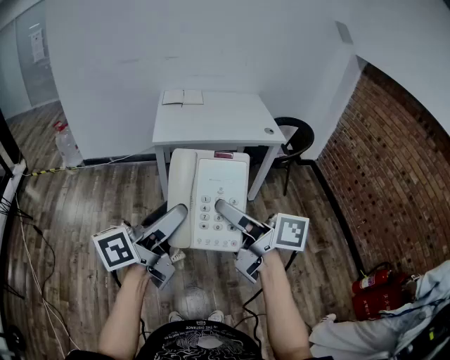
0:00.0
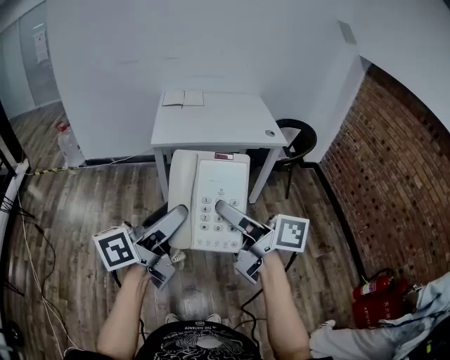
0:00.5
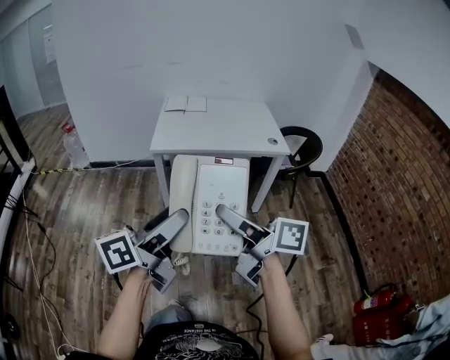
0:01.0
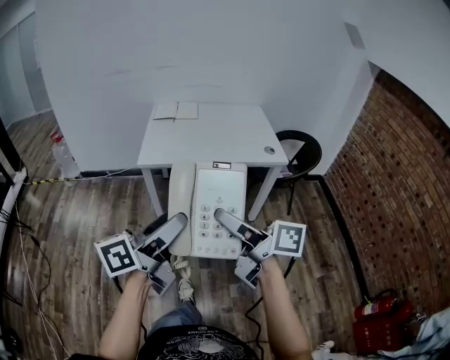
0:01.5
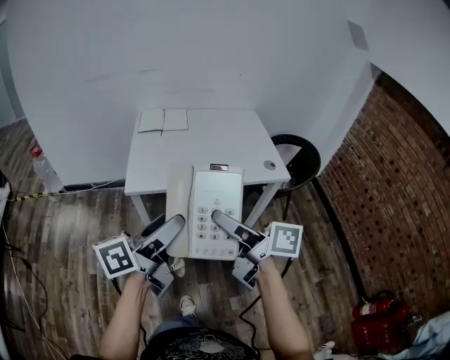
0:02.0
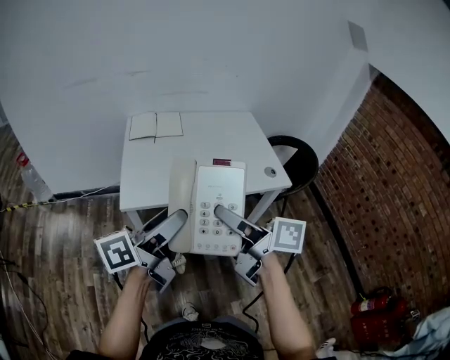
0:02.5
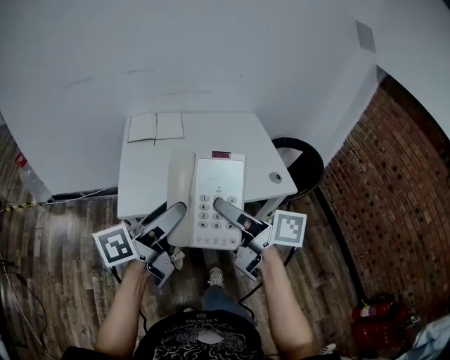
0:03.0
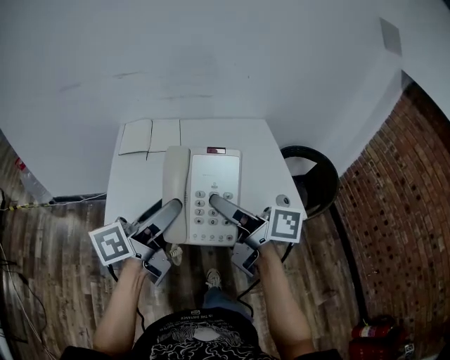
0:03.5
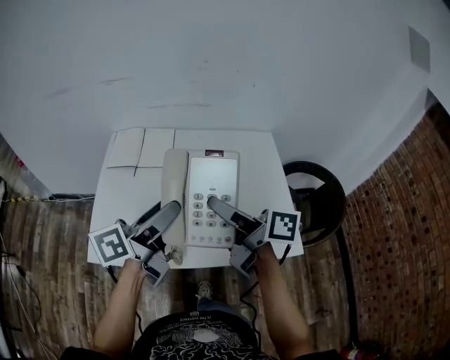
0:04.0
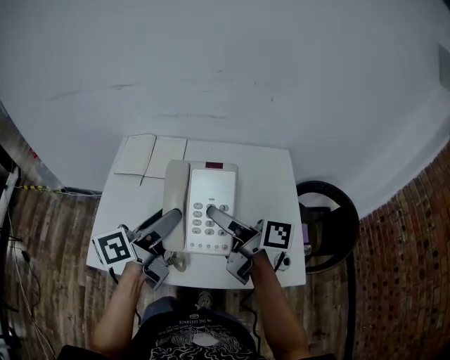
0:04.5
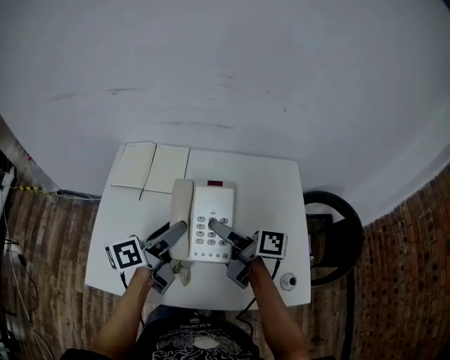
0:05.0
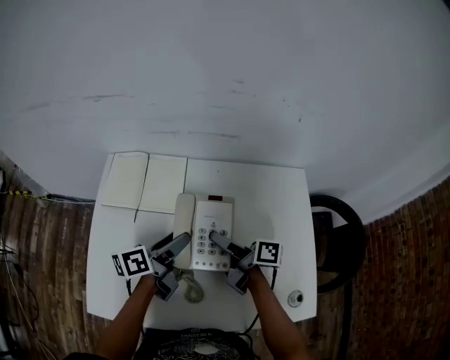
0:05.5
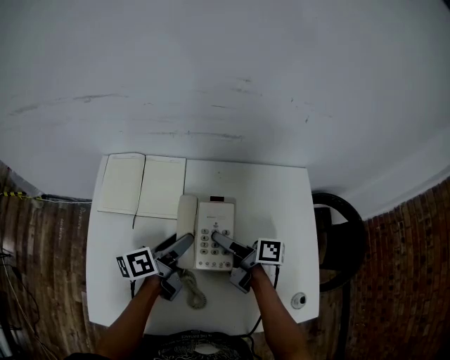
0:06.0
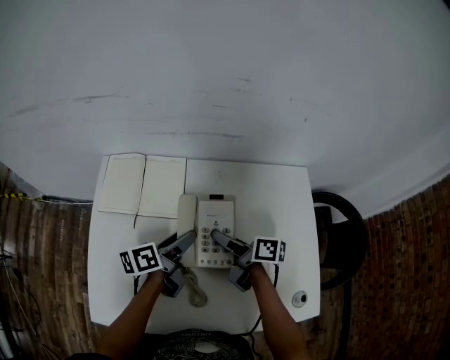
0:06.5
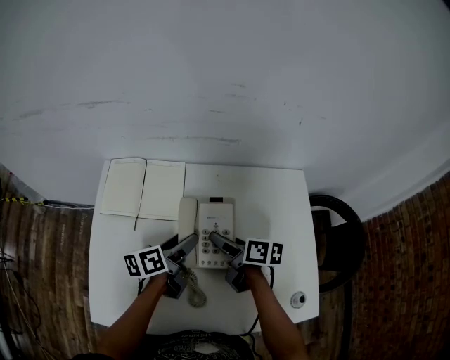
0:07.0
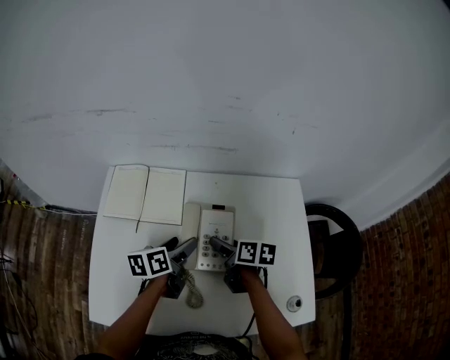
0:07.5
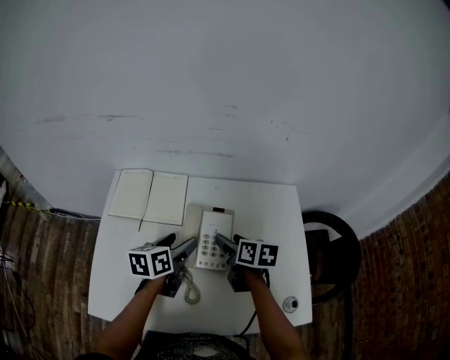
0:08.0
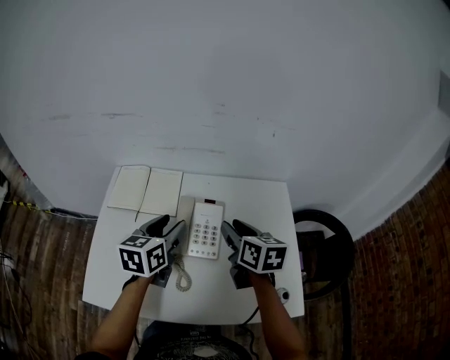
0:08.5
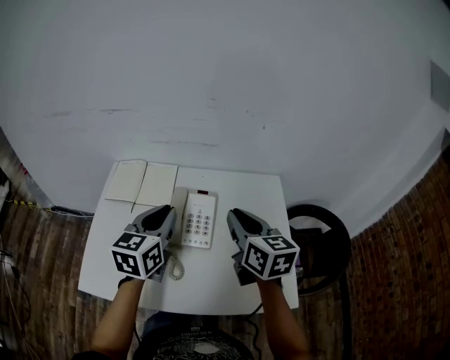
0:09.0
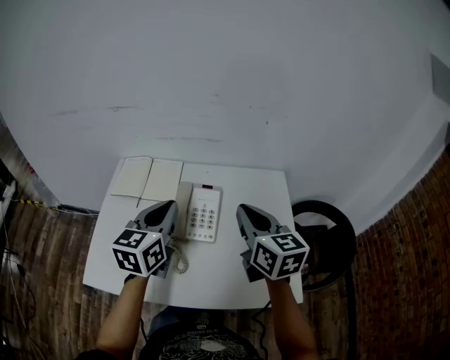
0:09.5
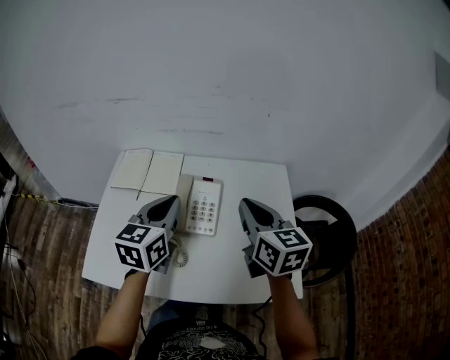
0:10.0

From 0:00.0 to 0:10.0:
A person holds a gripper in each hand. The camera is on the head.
From 0:00.0 to 0:02.0: Both grippers travel together forward, approximately 30 cm.
From 0:02.0 to 0:04.0: The two grippers travel together, forward, some 40 cm.
From 0:04.0 to 0:06.0: The two grippers go some 30 cm downward and forward. The left gripper rotates about 20 degrees.
From 0:06.0 to 0:08.0: The right gripper shifts by some 5 cm, rotates some 40 degrees, and opens, while the left gripper turns by some 30 degrees.
From 0:08.0 to 0:10.0: The grippers both shift upward and backward by roughly 20 cm. The left gripper swivels some 30 degrees, and closes, while the right gripper rotates some 40 degrees, and closes up.

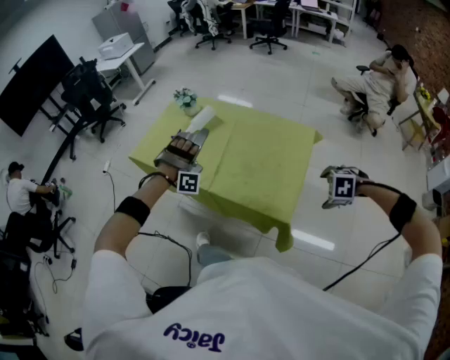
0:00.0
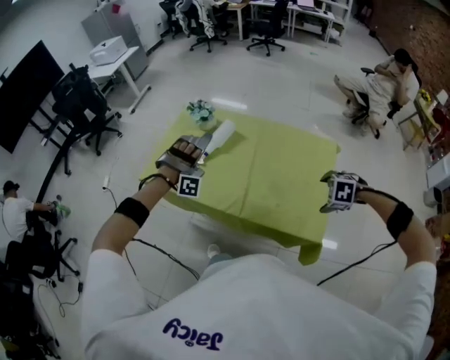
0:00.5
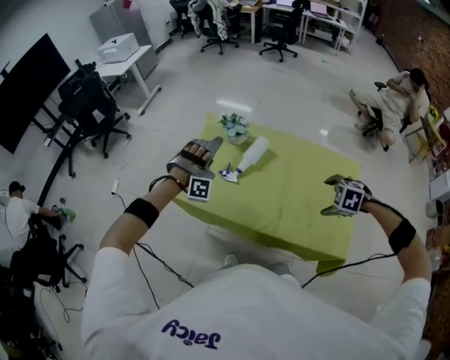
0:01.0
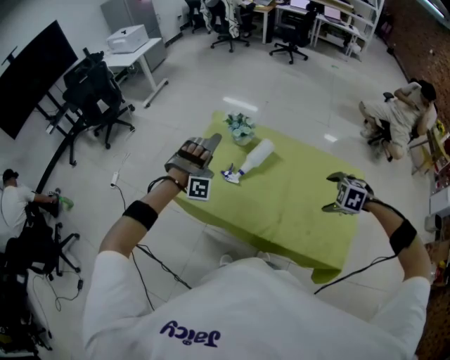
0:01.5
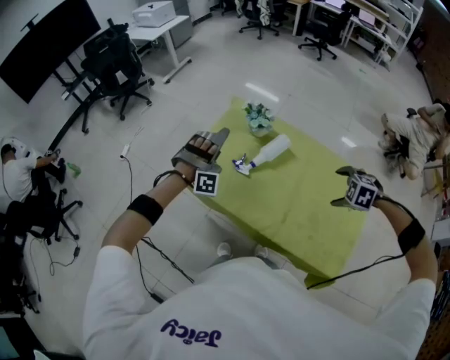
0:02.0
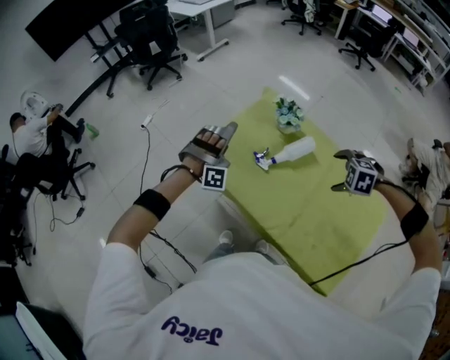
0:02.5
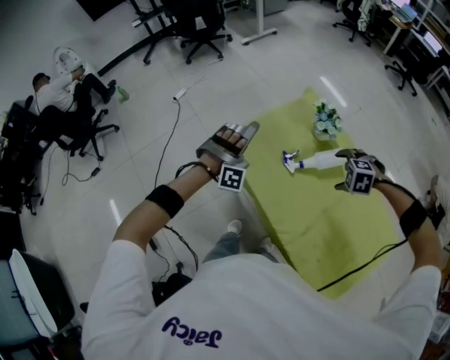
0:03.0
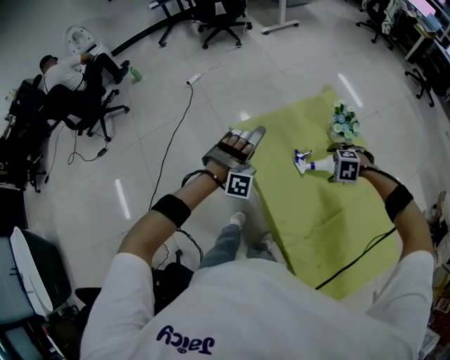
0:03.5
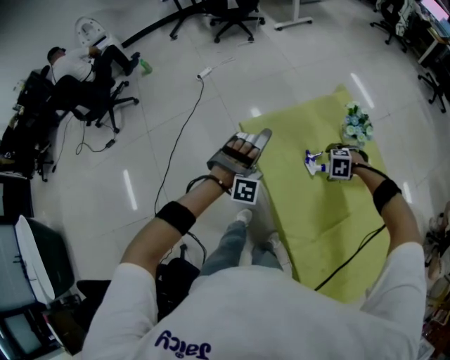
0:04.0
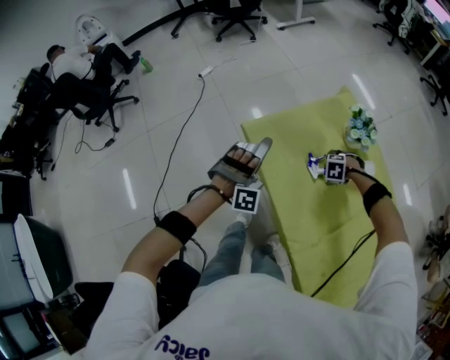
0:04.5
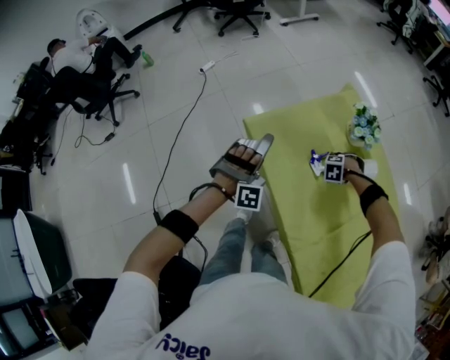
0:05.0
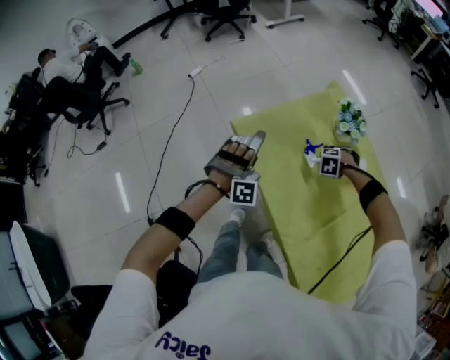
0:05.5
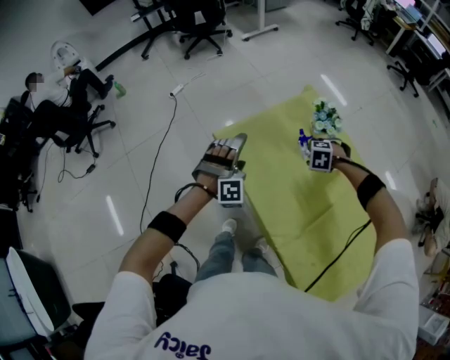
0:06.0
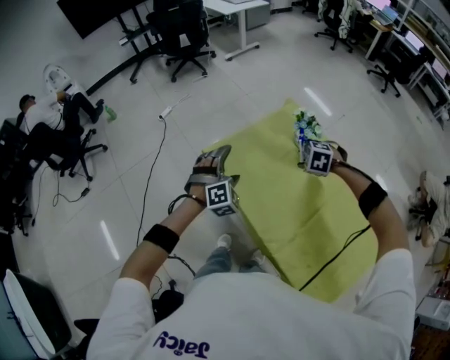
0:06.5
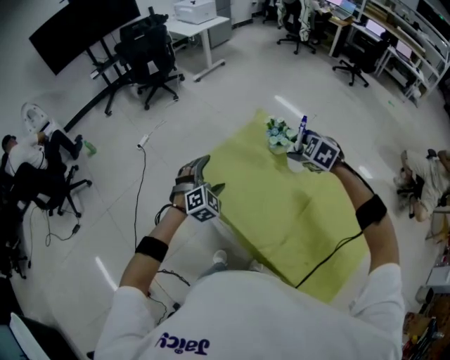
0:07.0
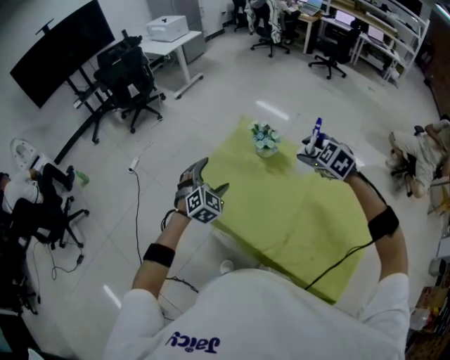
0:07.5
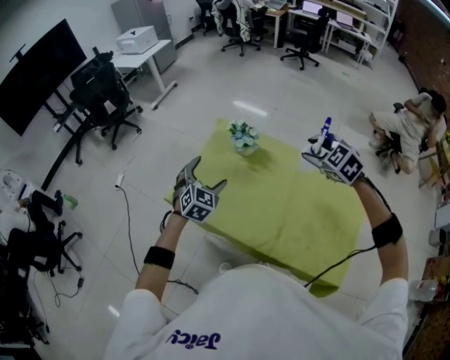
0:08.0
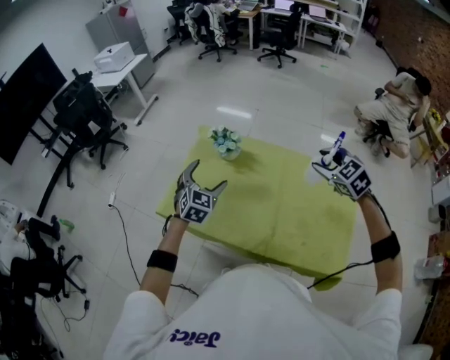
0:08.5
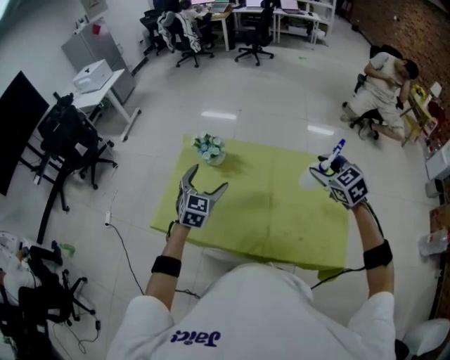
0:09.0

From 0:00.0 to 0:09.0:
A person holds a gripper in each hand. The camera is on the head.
From 0:00.0 to 0:02.0: The left gripper changes place by about 35 cm. Meanwhile the right gripper moves approximately 40 cm.
From 0:02.0 to 0:04.5: The left gripper moves approximately 15 cm, and swivels some 40 degrees. The right gripper shifts by about 40 cm, and twists about 40 degrees counterclockwise, seen from behind.
From 0:04.5 to 0:07.0: The left gripper shifts some 5 cm upward, and turns by roughly 40 degrees. Meanwhile the right gripper moves upward, roughly 30 cm, rotates roughly 50 degrees, and closes.
From 0:07.0 to 0:09.0: The right gripper moves some 30 cm, and turns by some 50 degrees. Meanwhile the left gripper shifts by approximately 20 cm, and turns by some 40 degrees.

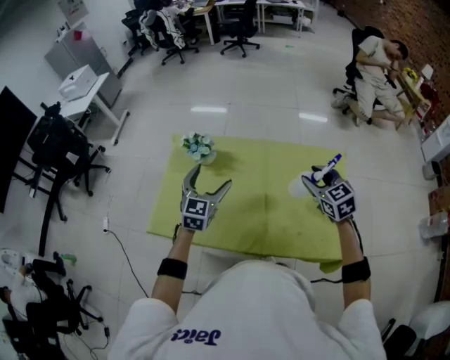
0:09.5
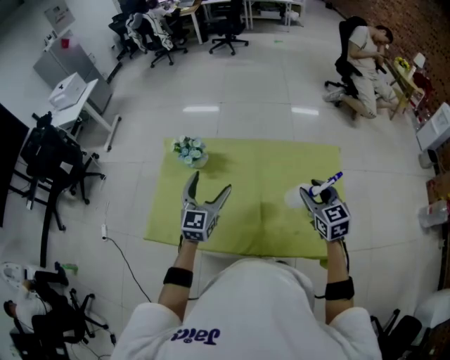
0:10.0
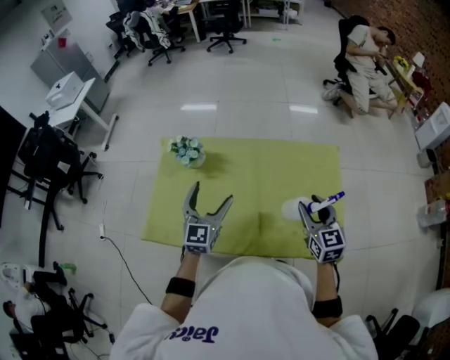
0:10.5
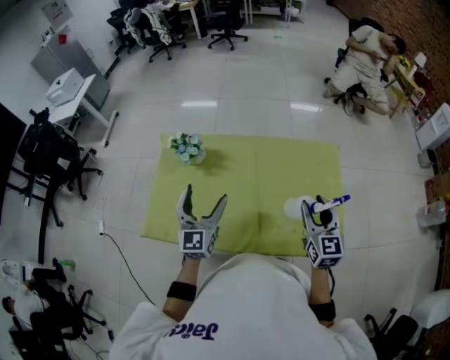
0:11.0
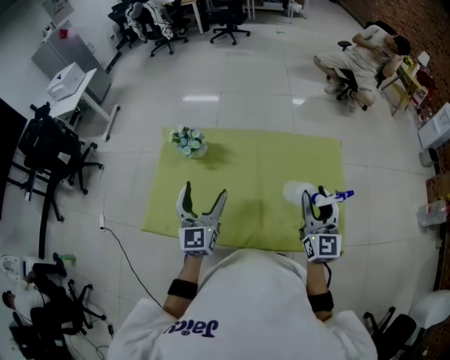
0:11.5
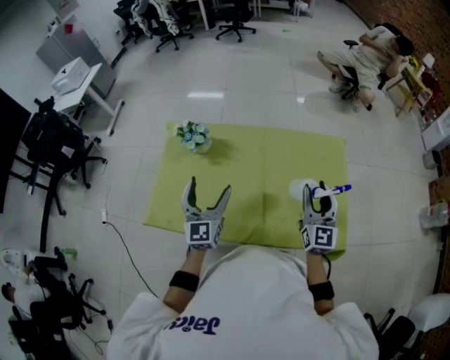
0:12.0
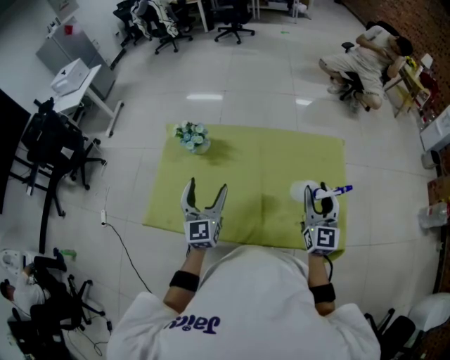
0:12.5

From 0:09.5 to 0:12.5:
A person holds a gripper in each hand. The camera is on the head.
From 0:09.5 to 0:11.0: The right gripper goes approximately 10 cm backward, and changes its angle by roughly 30 degrees, while the left gripper moves backward, approximately 5 cm.
From 0:11.0 to 0:12.5: The grippers stay close to where they were, moving slightly.

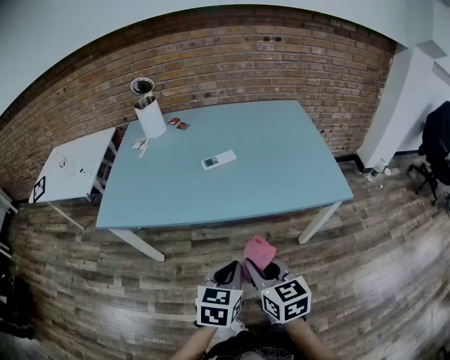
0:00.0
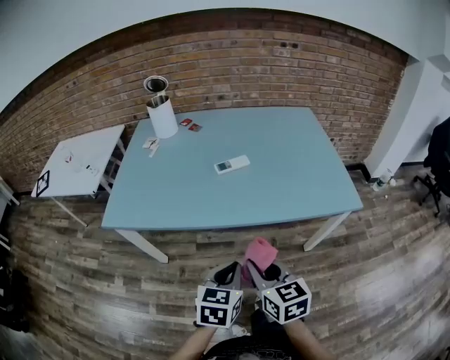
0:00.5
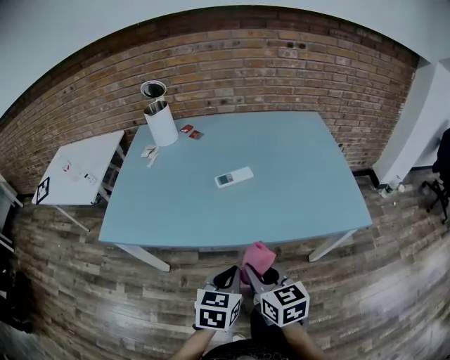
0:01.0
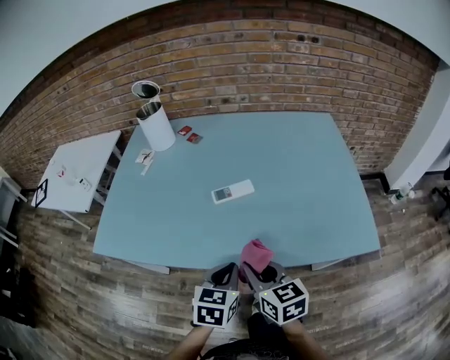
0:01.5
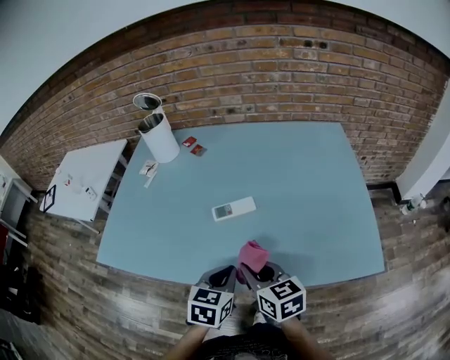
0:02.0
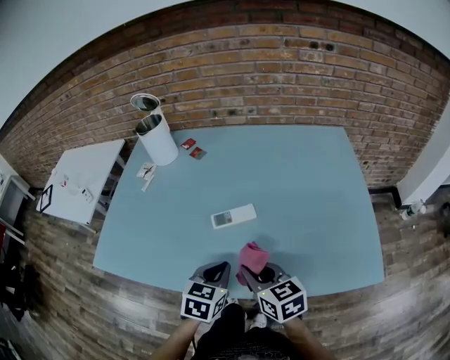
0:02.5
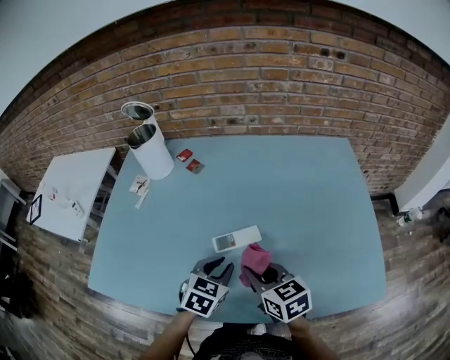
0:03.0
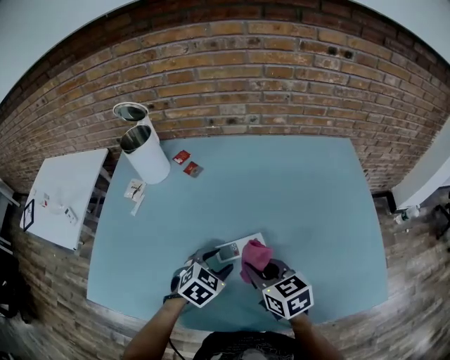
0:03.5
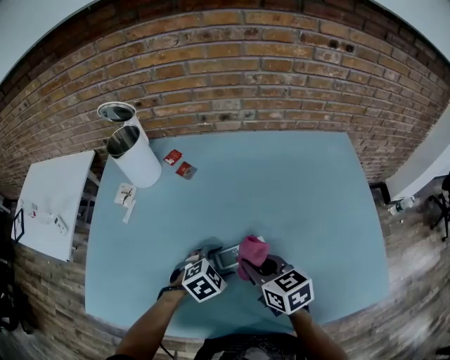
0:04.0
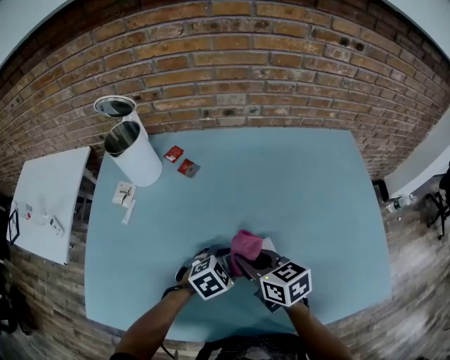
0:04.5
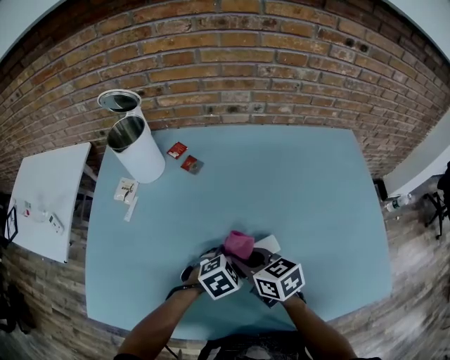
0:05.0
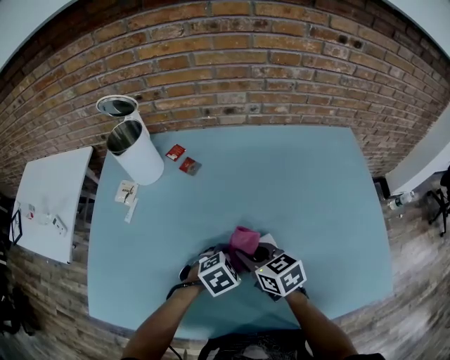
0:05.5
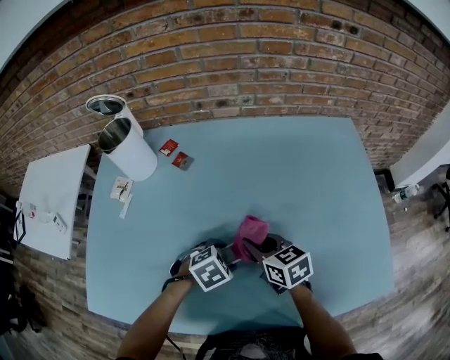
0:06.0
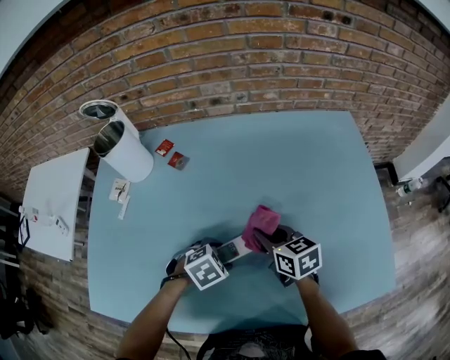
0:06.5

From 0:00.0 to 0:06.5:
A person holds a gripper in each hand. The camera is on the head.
From 0:00.0 to 0:02.0: Both grippers travel together forward, roughly 25 cm.
From 0:02.0 to 0:04.5: The left gripper travels forward and downward by some 25 cm, swivels roughly 50 degrees, and opens up, while the right gripper travels forward by roughly 20 cm.
From 0:04.5 to 0:06.5: The right gripper is displaced to the right and forward by approximately 10 cm.
